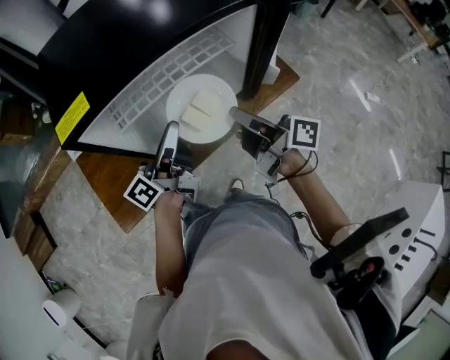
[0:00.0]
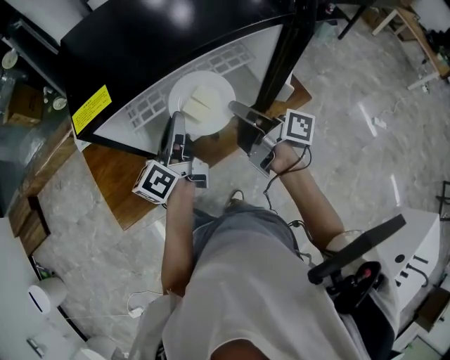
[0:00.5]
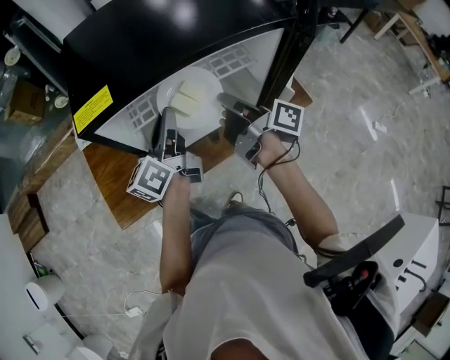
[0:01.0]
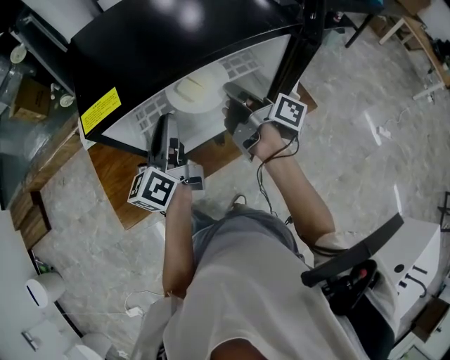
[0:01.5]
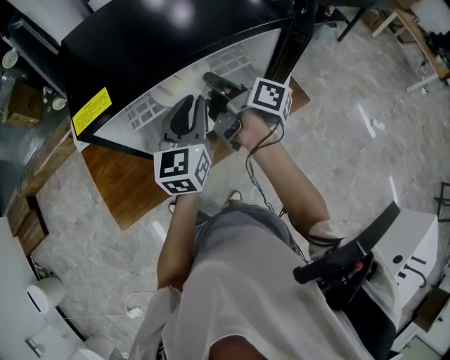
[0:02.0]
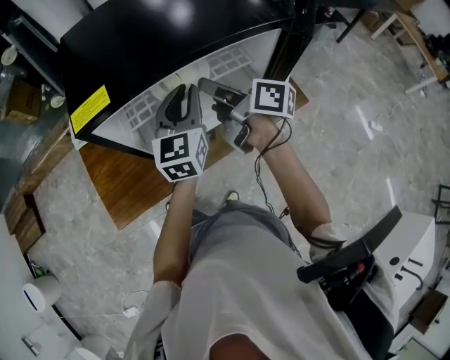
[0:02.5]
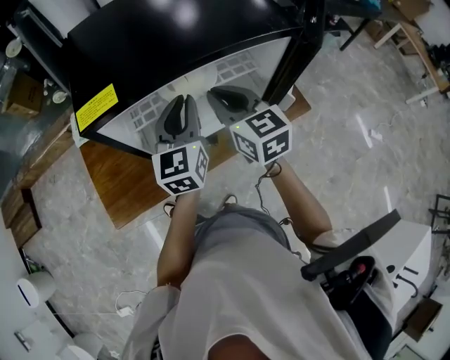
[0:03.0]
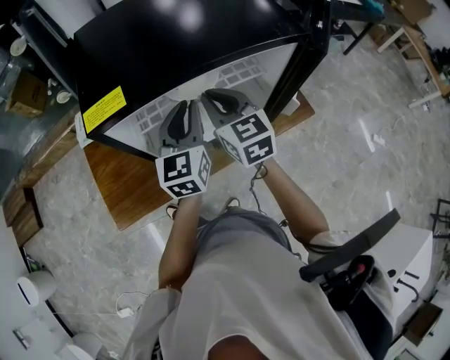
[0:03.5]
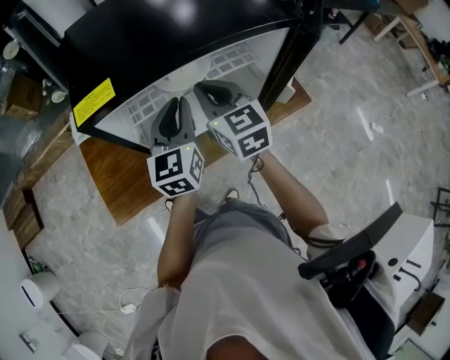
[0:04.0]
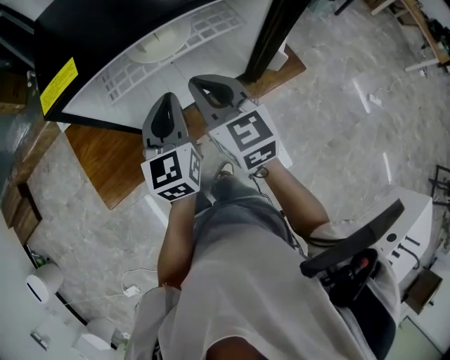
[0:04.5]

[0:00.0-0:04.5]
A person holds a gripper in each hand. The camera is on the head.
0:00.0 to 0:02.0: The right gripper goes about 15 cm forward; the left gripper travels forward by roughly 5 cm, and twists about 60 degrees clockwise, seen from behind.
0:02.0 to 0:04.5: The right gripper heads backward, covering roughly 10 cm, rolls counterclockwise, seen from behind, by roughly 80 degrees, and opens, then closes again; the left gripper ends up roughly 5 cm from where it was.

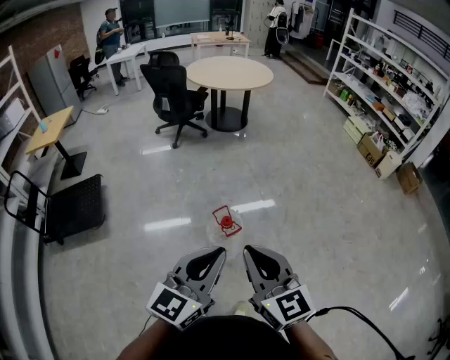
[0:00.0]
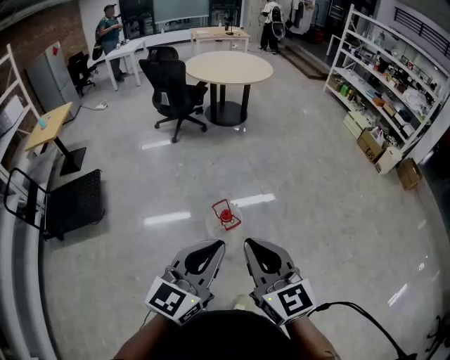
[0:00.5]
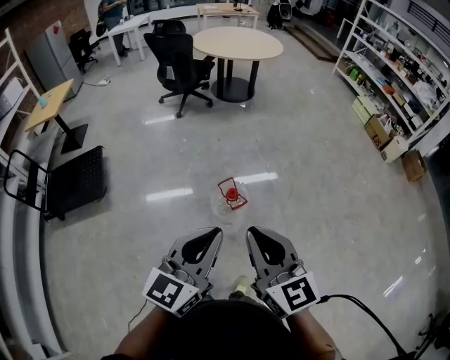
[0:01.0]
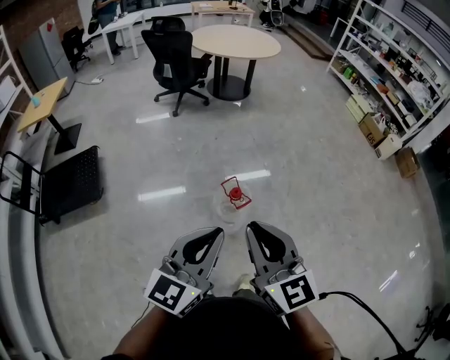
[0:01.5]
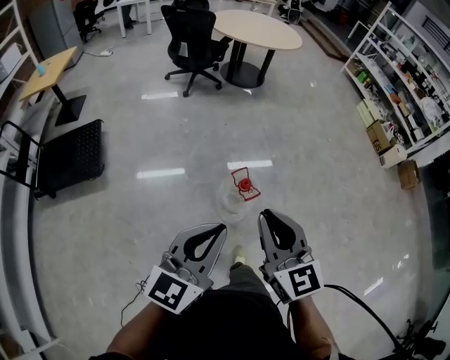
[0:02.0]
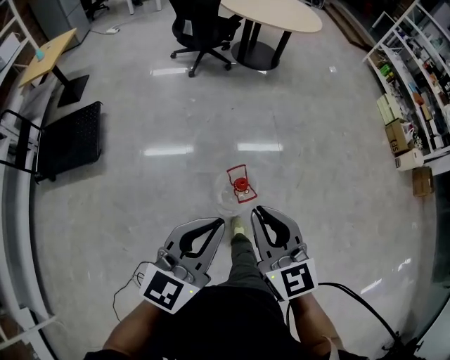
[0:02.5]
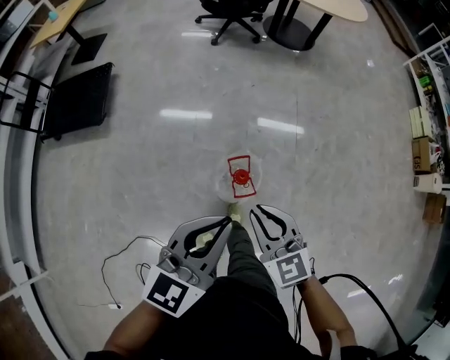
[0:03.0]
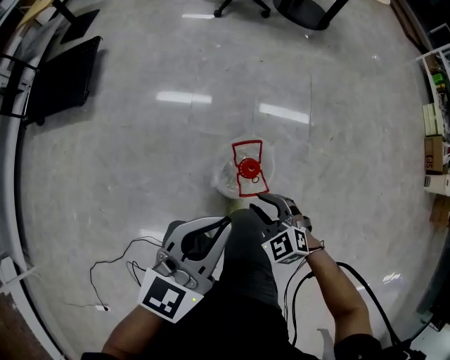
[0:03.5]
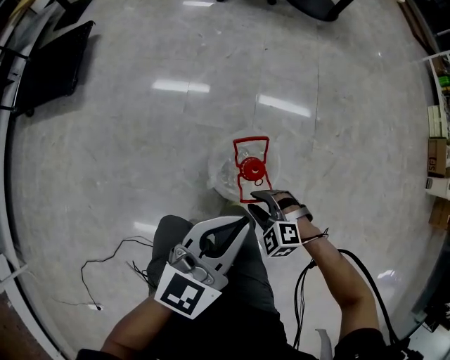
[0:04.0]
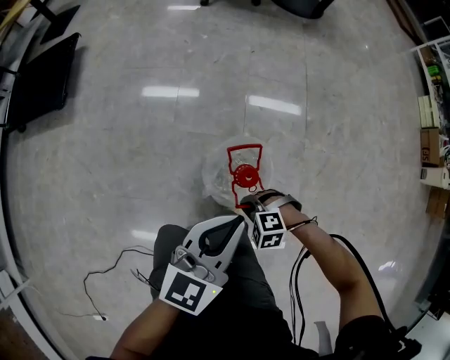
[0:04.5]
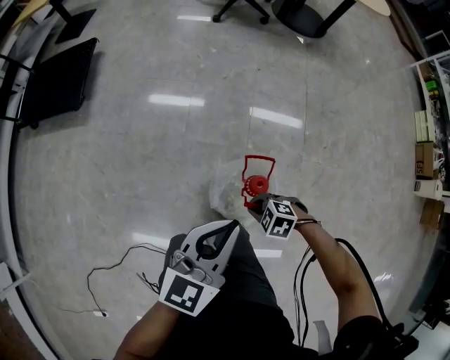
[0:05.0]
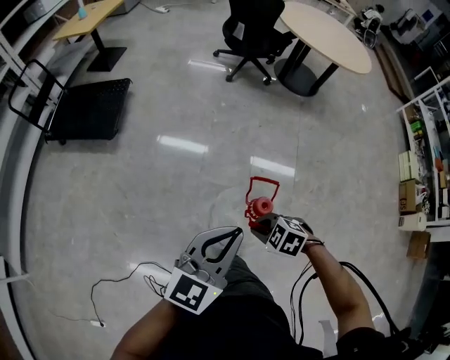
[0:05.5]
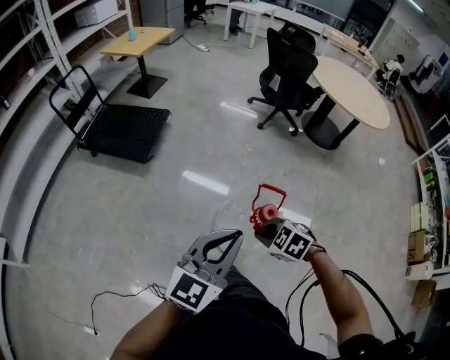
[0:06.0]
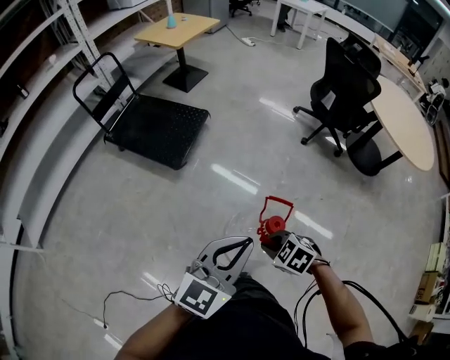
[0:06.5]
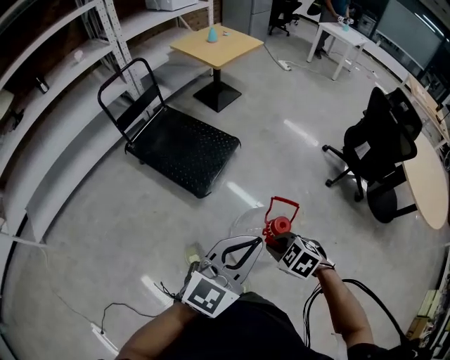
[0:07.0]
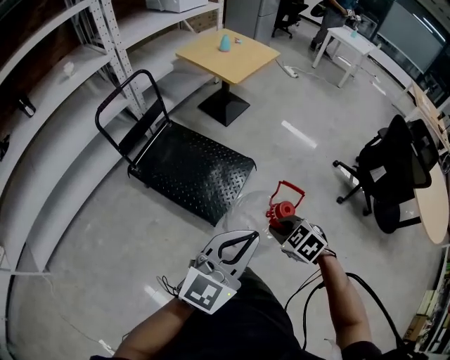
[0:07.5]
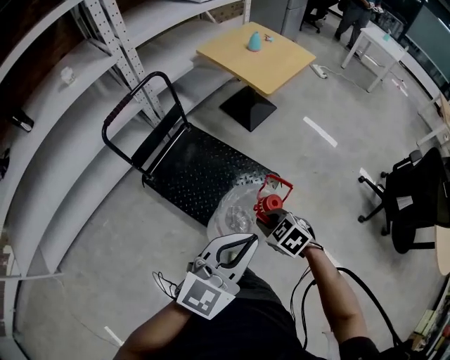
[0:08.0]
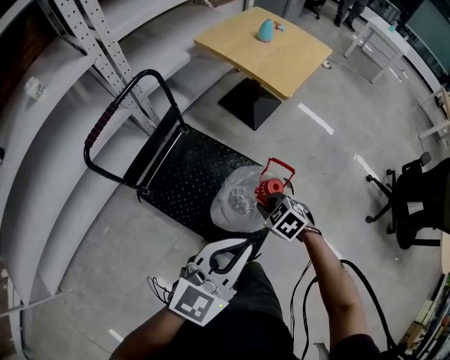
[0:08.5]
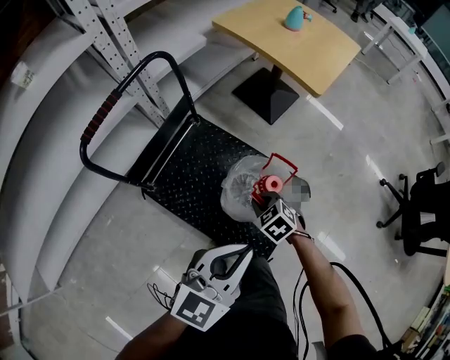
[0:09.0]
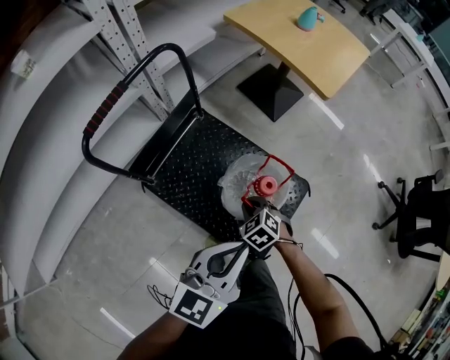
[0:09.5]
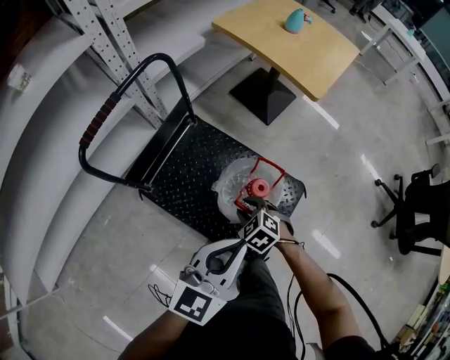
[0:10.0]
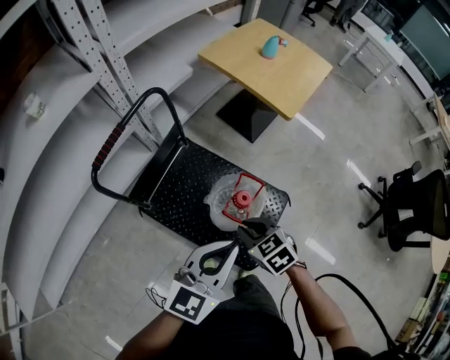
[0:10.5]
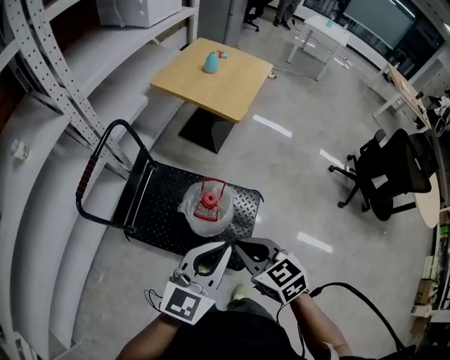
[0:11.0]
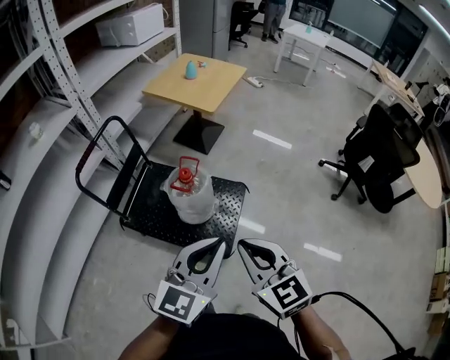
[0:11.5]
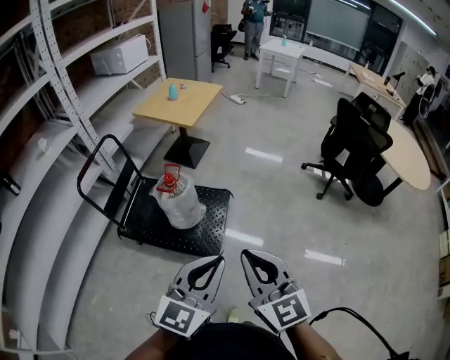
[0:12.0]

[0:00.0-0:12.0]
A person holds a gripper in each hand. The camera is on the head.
0:00.0 to 0:02.0: The two grippers go about 15 cm to the left.
0:02.0 to 0:04.0: The left gripper heads downward, covering roughly 50 cm, and rotates roughly 20 degrees; the right gripper moves downward, about 70 cm, tips its fingers downward by some 50 degrees, and opens.
0:04.0 to 0:06.0: Both grippers move upward, about 40 cm. The right gripper closes up. The left gripper turns by some 30 degrees.
0:06.0 to 0:08.0: The two grippers travel together, forward, about 1 m.
0:08.0 to 0:10.0: The left gripper goes about 40 cm forward, to the left and downward, while the right gripper goes about 40 cm forward, downward and to the left, and opens its fingers.
0:10.0 to 0:12.0: Both grippers are carried backward and to the right, about 60 cm. The left gripper shifts about 30 cm upward, while the right gripper travels upward by some 50 cm, angles its fingers upward, by about 60 degrees, and closes its fingers.

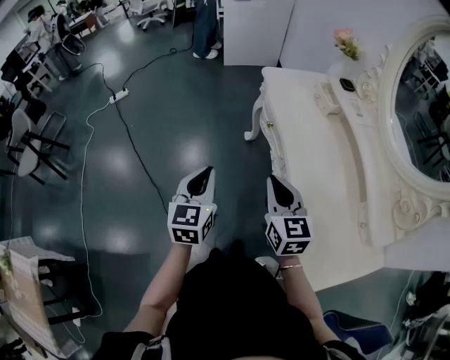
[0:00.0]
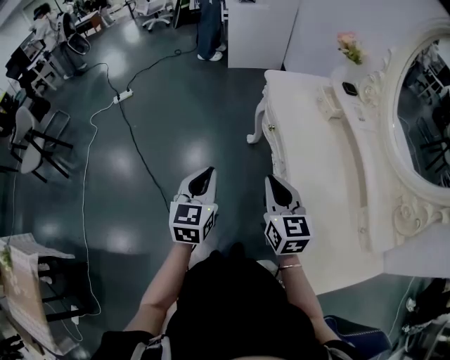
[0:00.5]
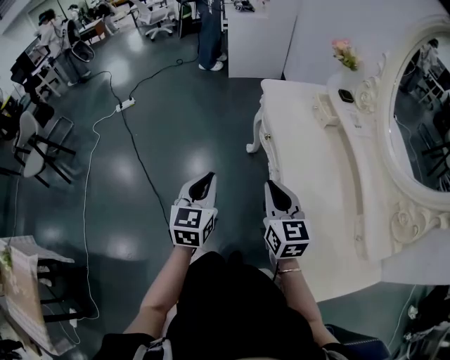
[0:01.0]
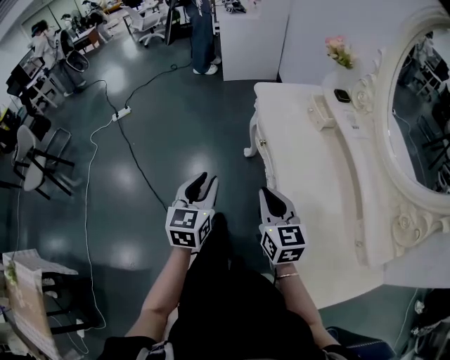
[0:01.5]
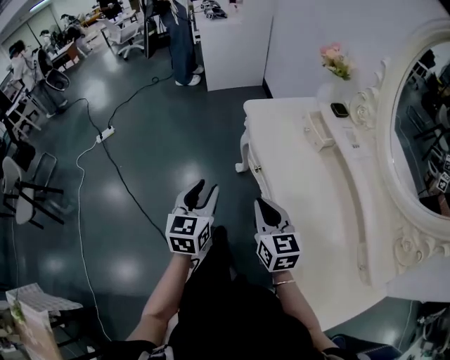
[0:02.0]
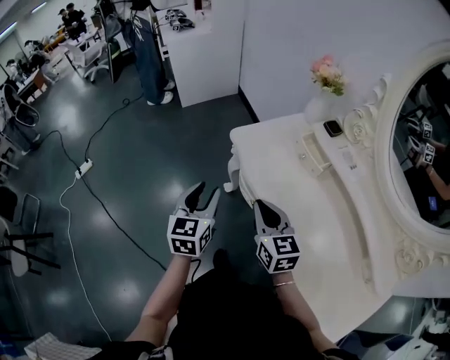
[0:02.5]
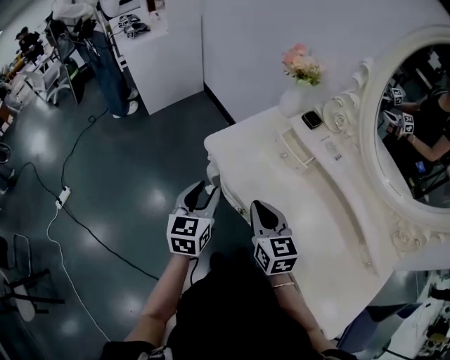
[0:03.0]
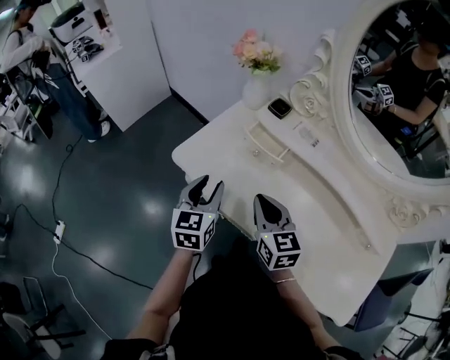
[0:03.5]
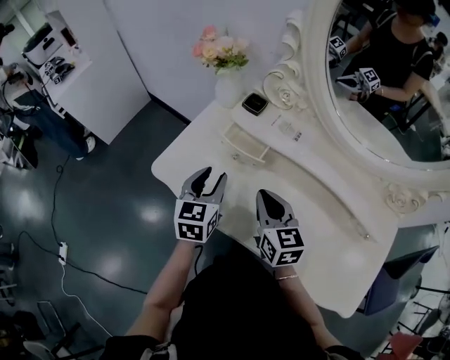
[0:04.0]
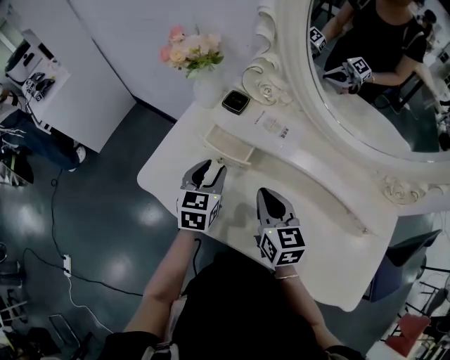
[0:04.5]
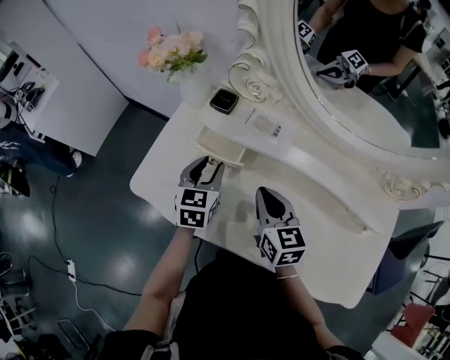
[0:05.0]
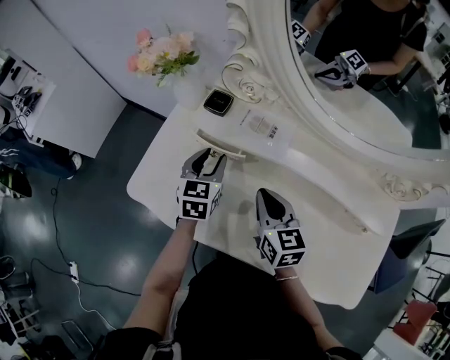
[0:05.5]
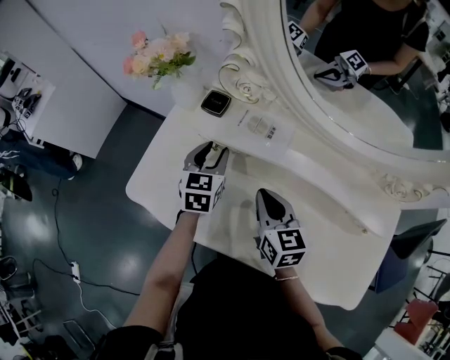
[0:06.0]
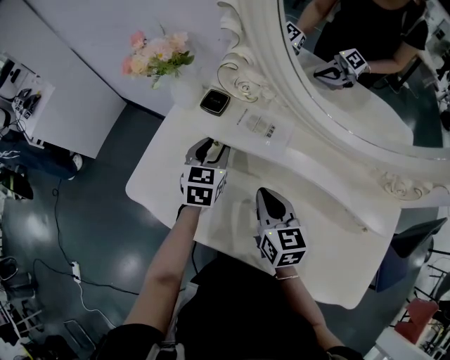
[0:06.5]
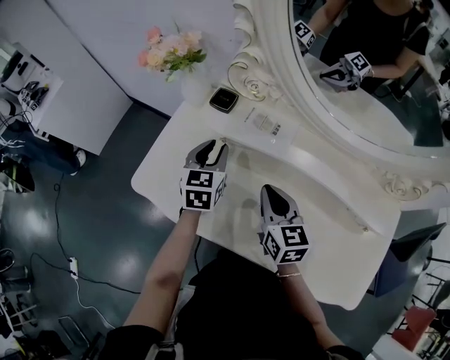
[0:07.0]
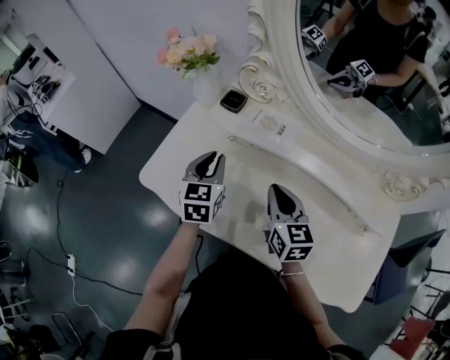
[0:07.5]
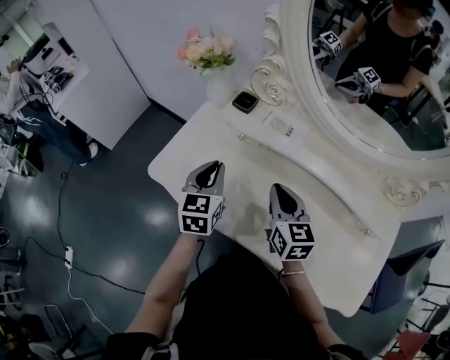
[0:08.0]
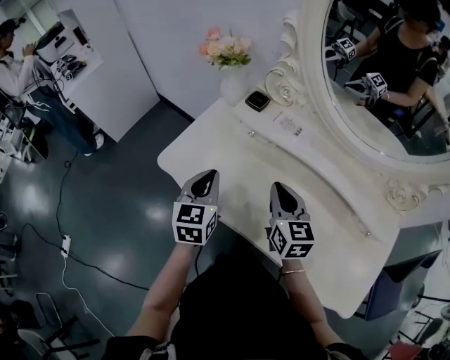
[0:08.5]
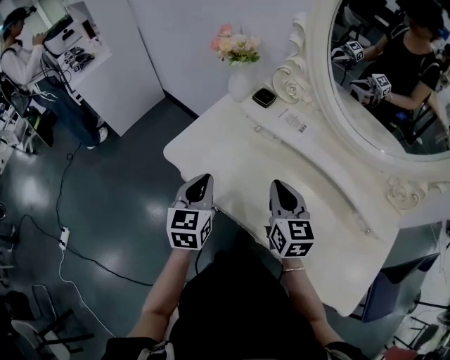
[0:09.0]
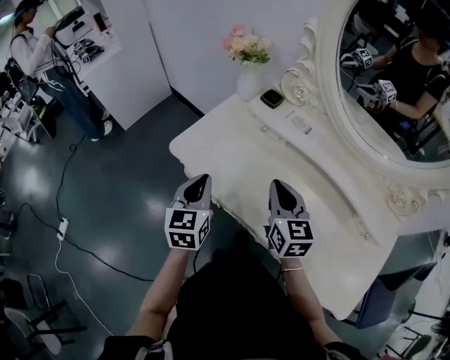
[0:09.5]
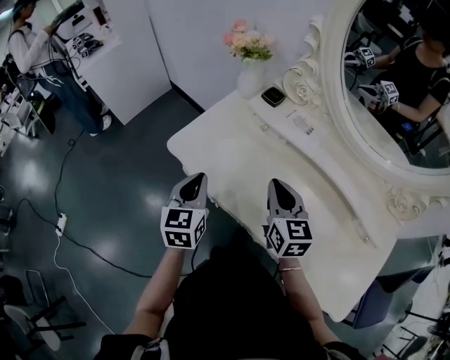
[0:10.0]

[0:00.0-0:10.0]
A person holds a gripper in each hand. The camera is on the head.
0:00.0 to 0:02.0: The grippers both shift forward by roughly 15 cm. The left gripper opens its fingers.
0:02.0 to 0:04.0: The left gripper changes place by about 35 cm, and changes its angle by some 40 degrees. The right gripper shifts by some 25 cm, and turns by about 40 degrees.
0:04.0 to 0:06.0: The left gripper is displaced forward and to the right by approximately 15 cm. Meanwhile the right gripper travels to the right by roughly 5 cm.
0:06.0 to 0:08.0: The left gripper travels backward, to the left and upward by about 15 cm, and closes its fingers.
0:08.0 to 0:10.0: The right gripper shifts approximately 5 cm to the left; the left gripper goes approximately 15 cm to the left and backward.
